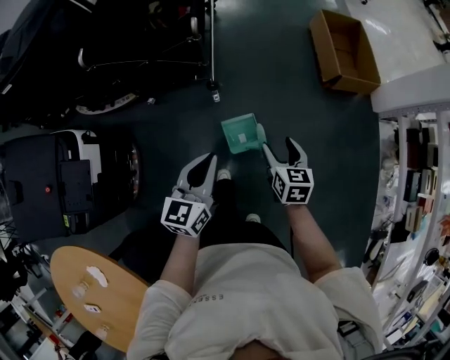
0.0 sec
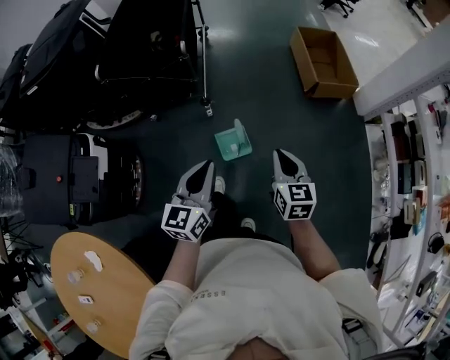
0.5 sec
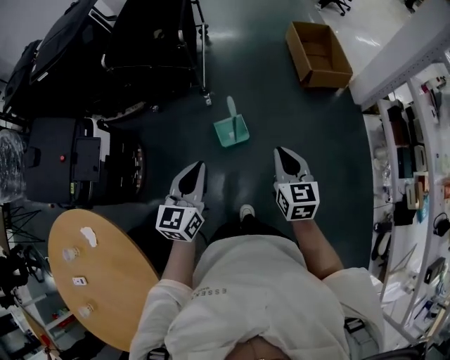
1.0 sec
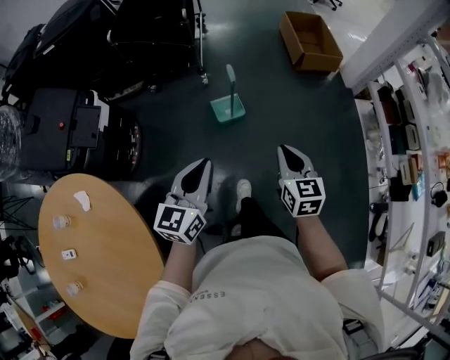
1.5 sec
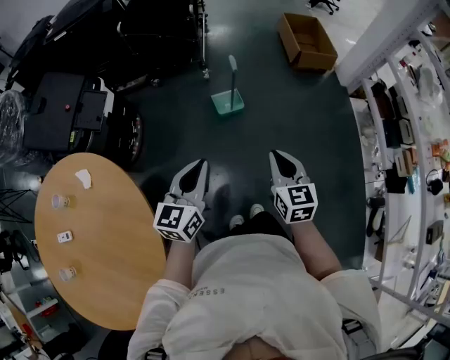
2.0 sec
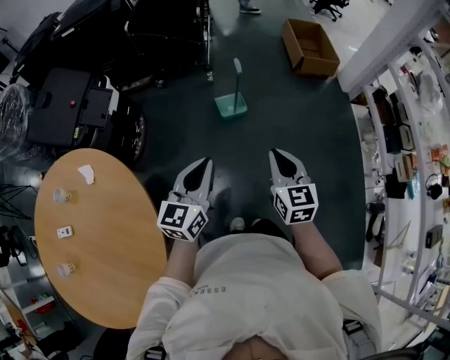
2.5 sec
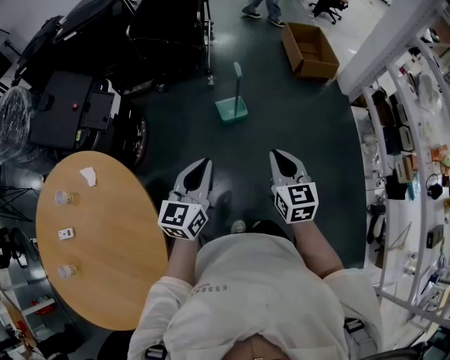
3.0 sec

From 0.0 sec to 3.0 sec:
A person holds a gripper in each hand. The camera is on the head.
From 0.0 sec to 1.5 sec: The two grippers travel together, backward, about 40 cm. The right gripper is displaced upward by some 15 cm, and closes.
From 1.5 sec to 3.0 sec: The left gripper is displaced backward by about 10 cm; the right gripper goes about 15 cm backward and to the left.

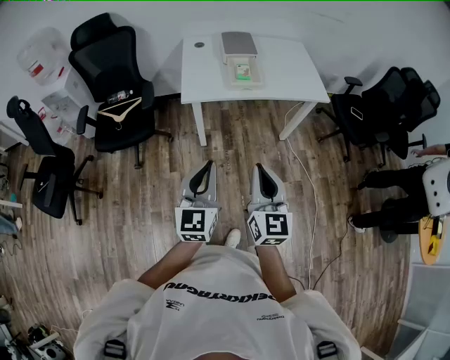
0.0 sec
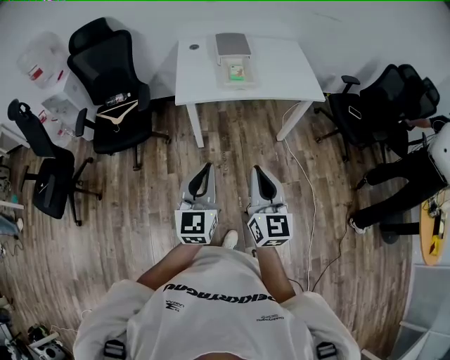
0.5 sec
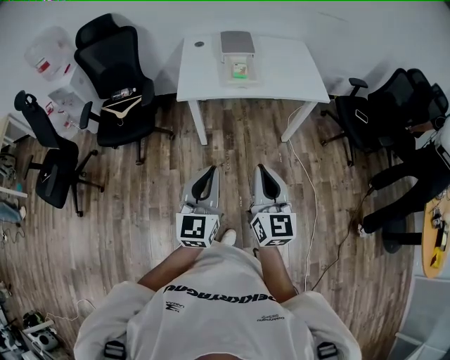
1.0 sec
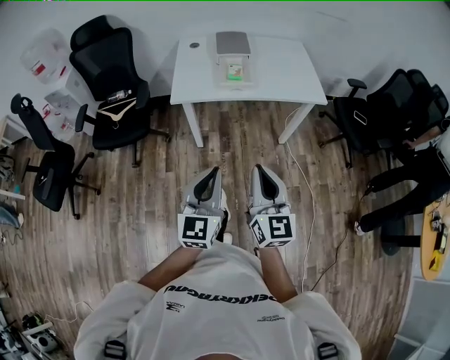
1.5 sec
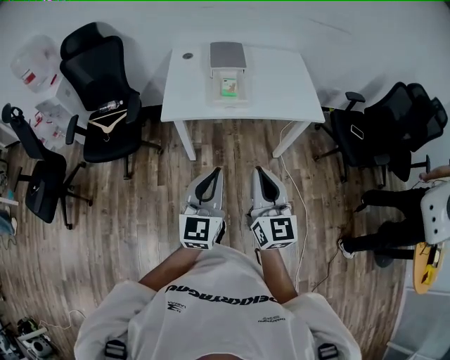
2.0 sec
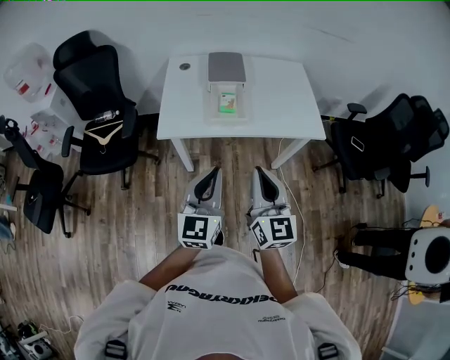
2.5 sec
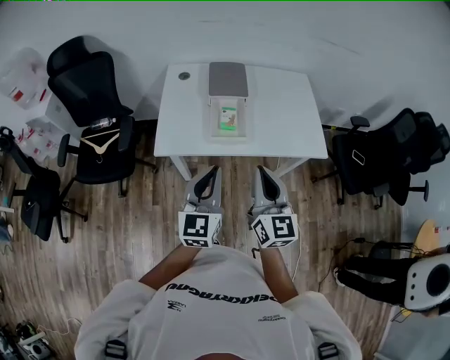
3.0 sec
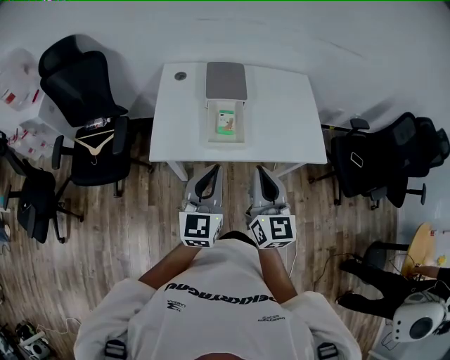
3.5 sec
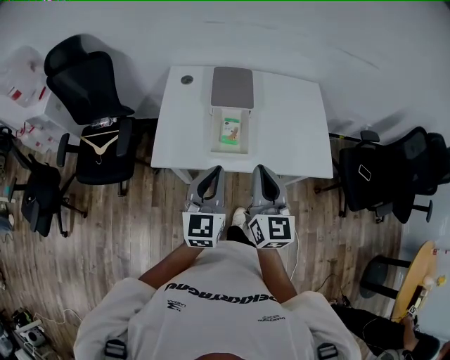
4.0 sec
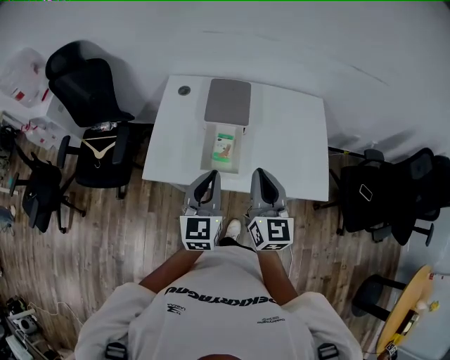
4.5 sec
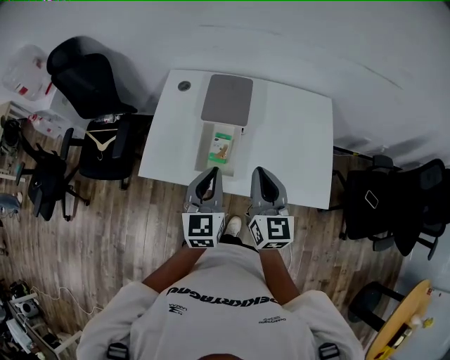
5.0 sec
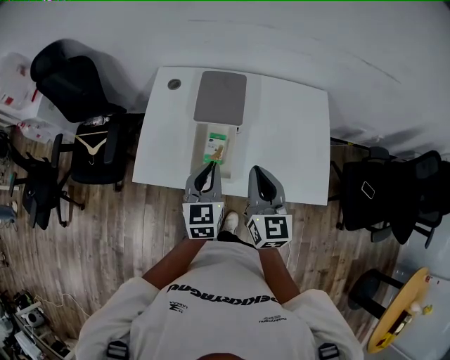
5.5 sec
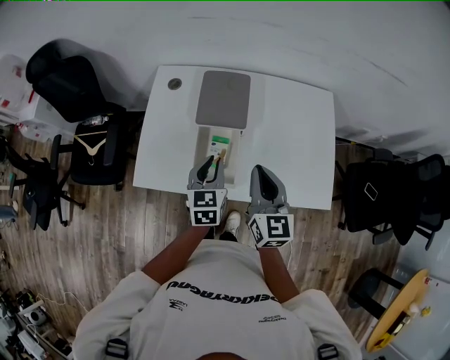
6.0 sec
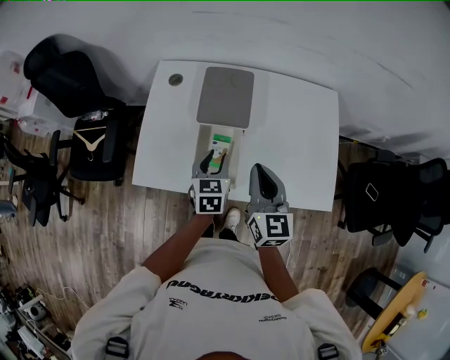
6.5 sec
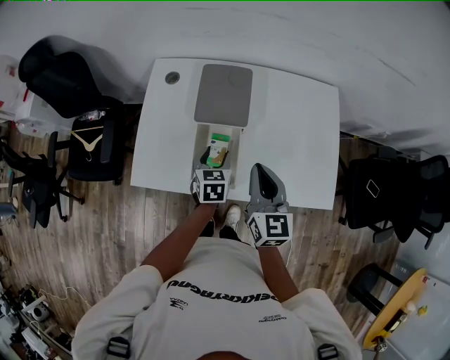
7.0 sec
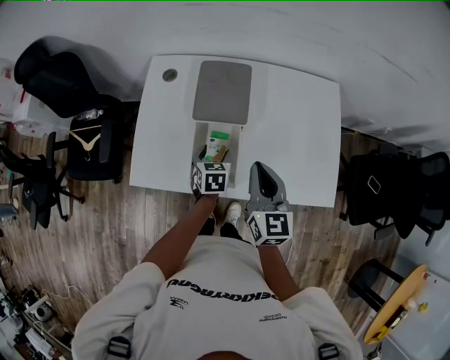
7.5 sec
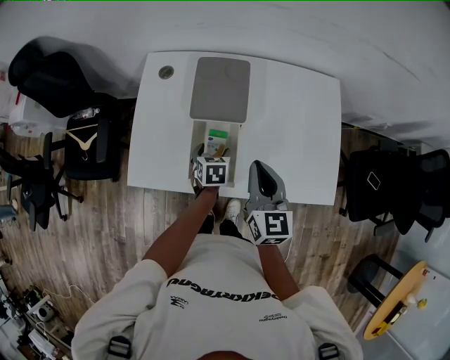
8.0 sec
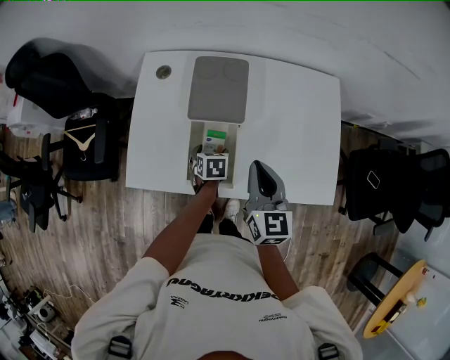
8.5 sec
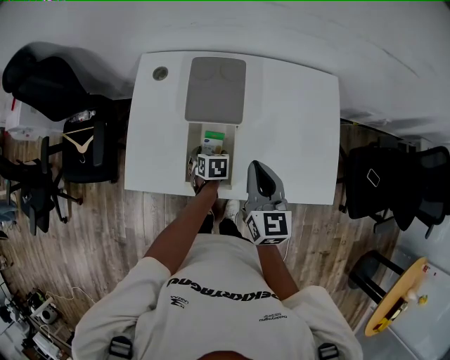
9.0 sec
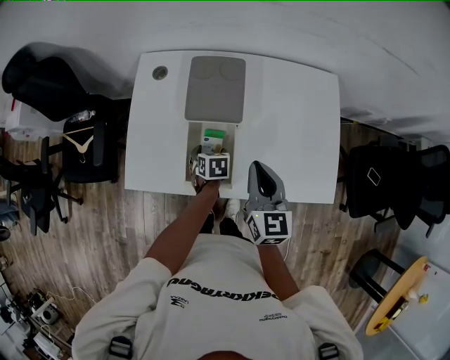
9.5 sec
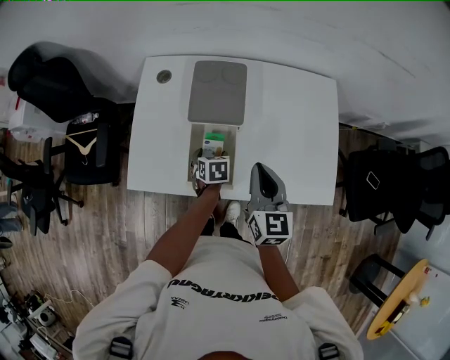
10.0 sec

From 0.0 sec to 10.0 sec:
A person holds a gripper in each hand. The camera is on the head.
From 0.0 sec to 2.0 sec: The left gripper travels to the right and forward by some 15 cm; the right gripper goes approximately 15 cm forward and to the right.
From 2.0 sec to 4.0 sec: Both grippers move forward, some 30 cm.
From 4.0 sec to 6.0 sec: The right gripper travels forward, to the right and downward by approximately 20 cm, while the left gripper moves forward and downward, approximately 25 cm, and changes its angle by some 20 degrees.
From 6.0 sec to 8.0 sec: The left gripper goes about 15 cm downward, turns by some 30 degrees, and opens up. The right gripper ends up approximately 5 cm from where it was.
From 8.0 sec to 10.0 sec: The grippers stay close to where they were, moving slightly.

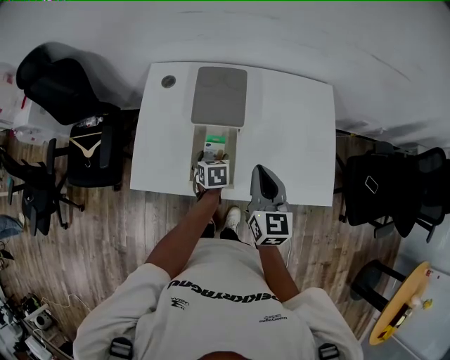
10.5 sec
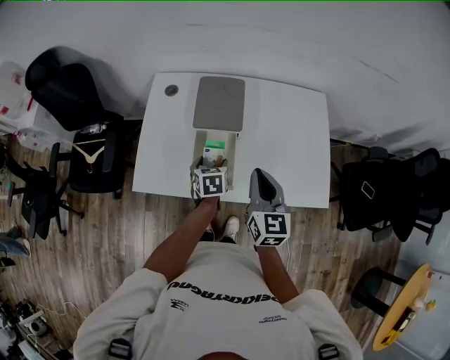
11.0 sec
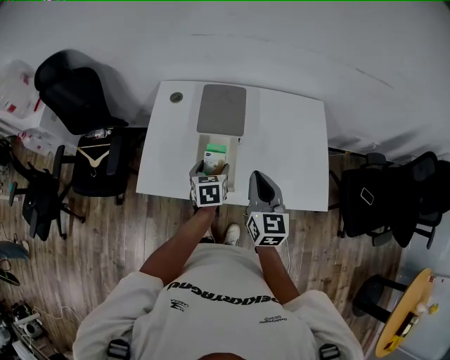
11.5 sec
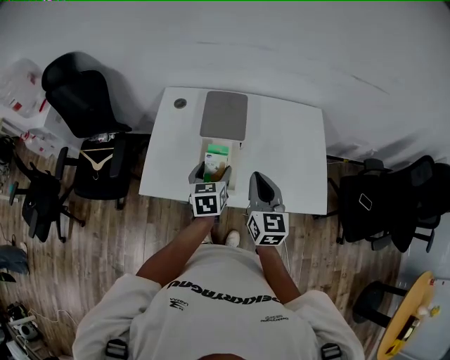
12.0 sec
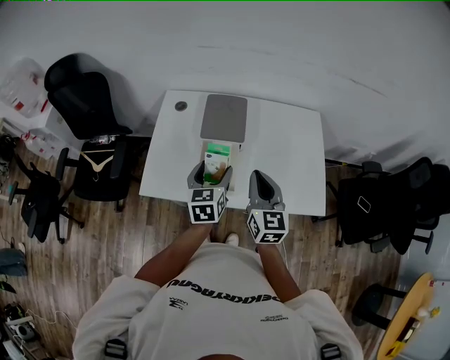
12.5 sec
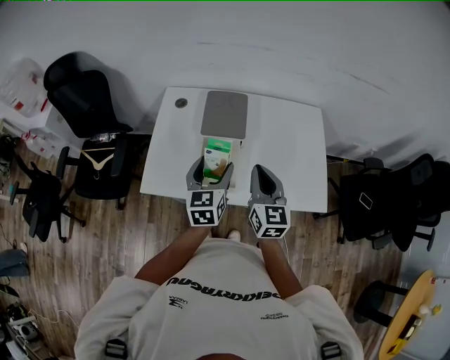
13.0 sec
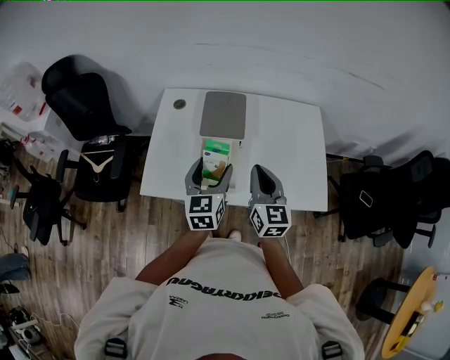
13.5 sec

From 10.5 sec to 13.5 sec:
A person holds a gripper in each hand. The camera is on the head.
From 10.5 sec to 12.0 sec: The right gripper shifts by about 5 cm, while the left gripper shifts roughly 15 cm upward, and rotates some 20 degrees.
From 12.0 sec to 13.5 sec: The left gripper travels upward by some 5 cm.

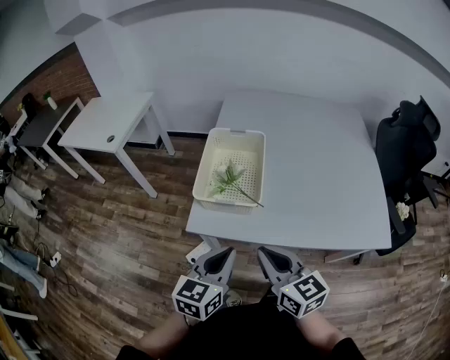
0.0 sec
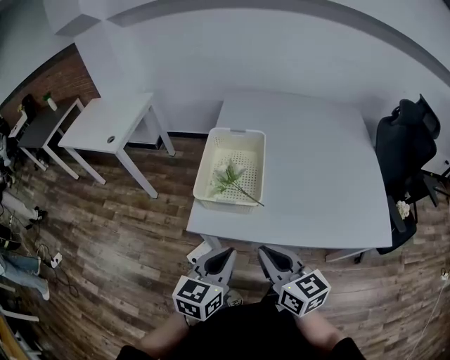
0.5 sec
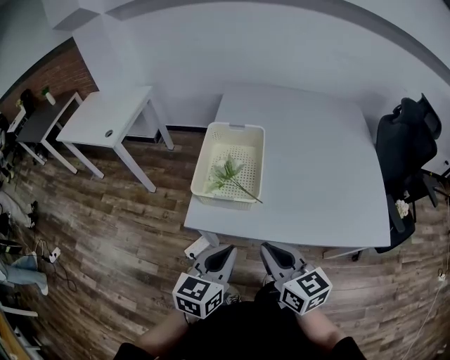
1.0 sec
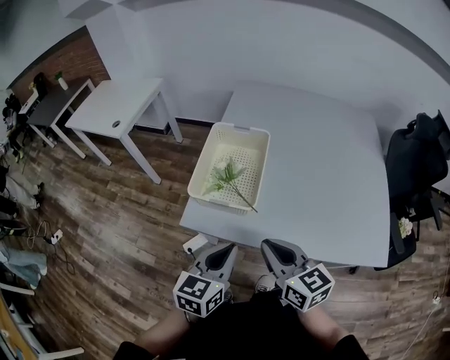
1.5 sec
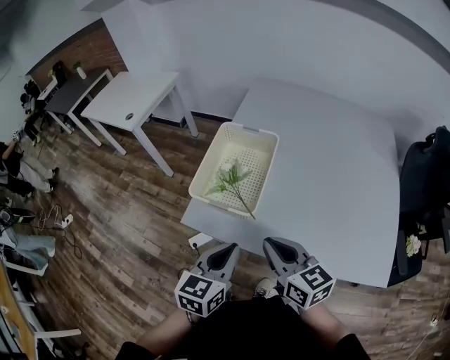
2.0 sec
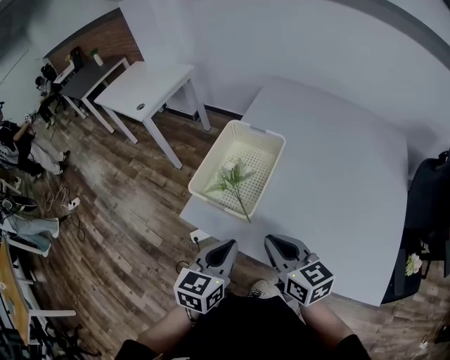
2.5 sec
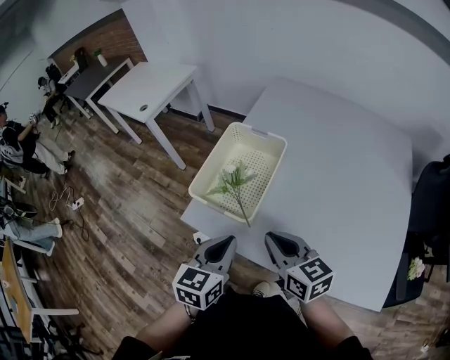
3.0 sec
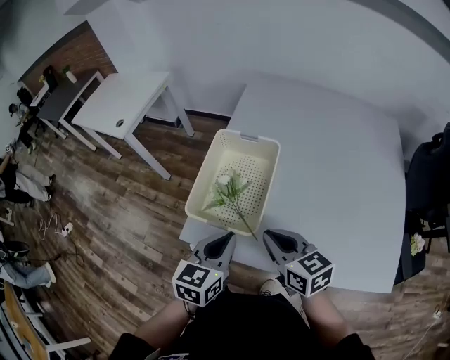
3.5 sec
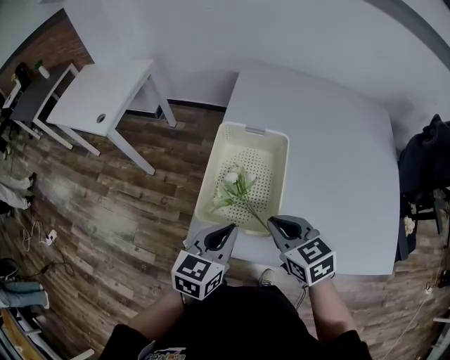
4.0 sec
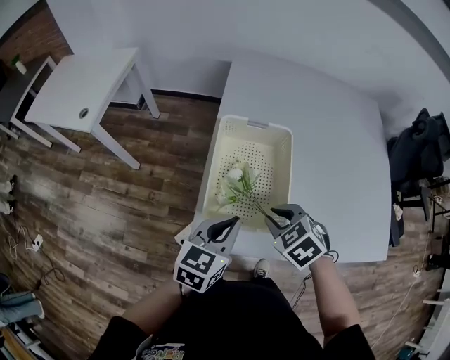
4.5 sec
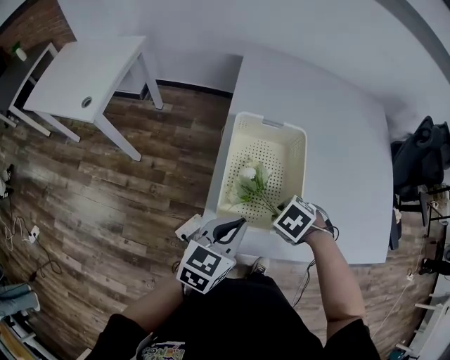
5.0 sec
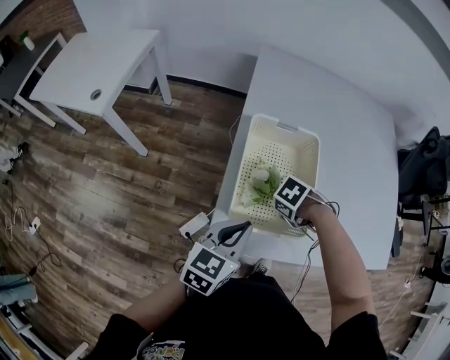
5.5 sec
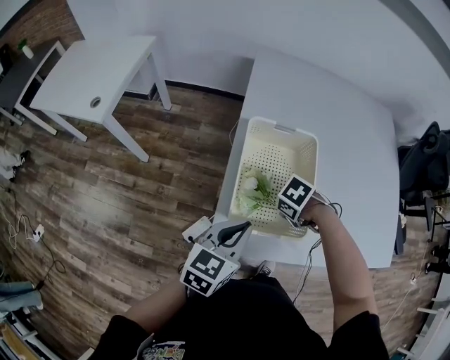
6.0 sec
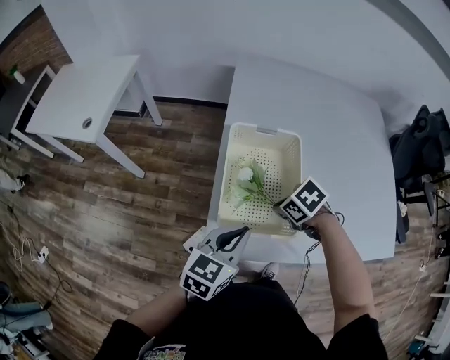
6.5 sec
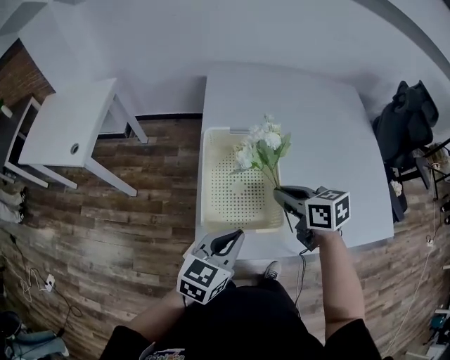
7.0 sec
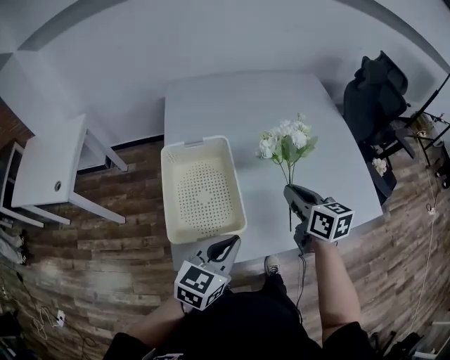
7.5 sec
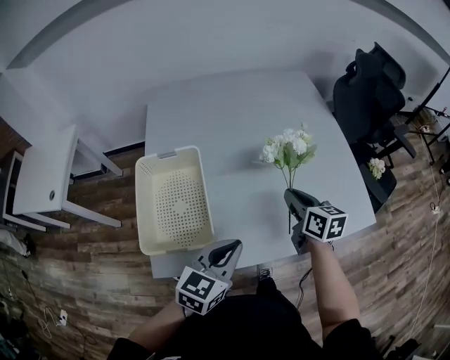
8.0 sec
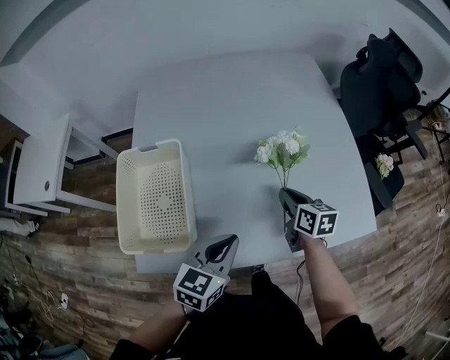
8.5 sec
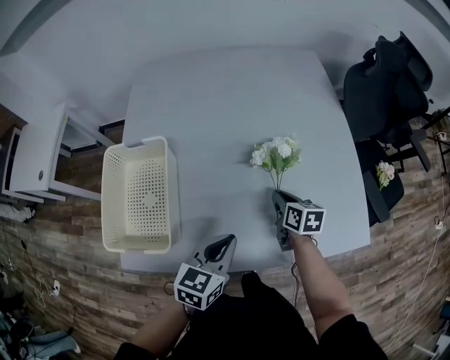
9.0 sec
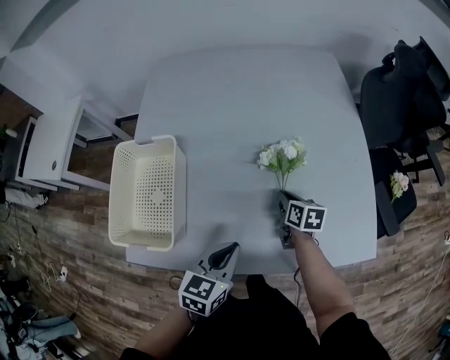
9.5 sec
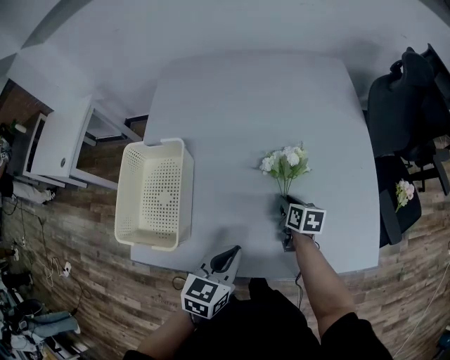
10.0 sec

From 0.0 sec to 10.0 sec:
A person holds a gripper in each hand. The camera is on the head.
From 0.0 sec to 2.0 sec: The left gripper shifts some 10 cm to the right and forward, while the right gripper shifts some 10 cm forward and to the right.
From 2.0 sec to 4.0 sec: The left gripper goes roughly 15 cm forward and to the left. The right gripper travels forward by about 15 cm, and rotates some 20 degrees.
From 4.0 sec to 6.0 sec: The right gripper shifts about 15 cm downward, and tilts its fingers some 40 degrees downward. Meanwhile the left gripper ends up about 10 cm from where it was.
From 6.0 sec to 8.0 sec: The right gripper shifts by about 35 cm, and points its fingers approximately 50 degrees further upward; the left gripper changes place by roughly 25 cm.
From 8.0 sec to 10.0 sec: The right gripper travels downward and forward by about 20 cm, and turns by approximately 20 degrees; the left gripper is displaced to the right, downward and forward by approximately 15 cm, and swivels about 20 degrees.
